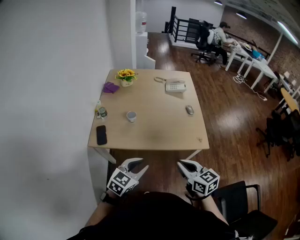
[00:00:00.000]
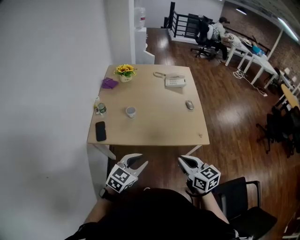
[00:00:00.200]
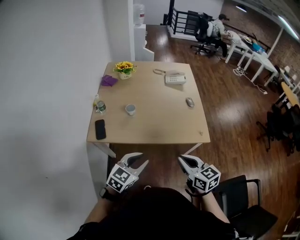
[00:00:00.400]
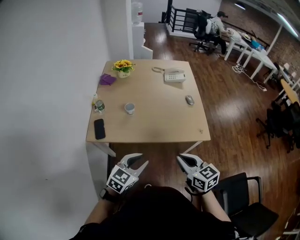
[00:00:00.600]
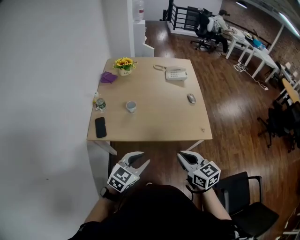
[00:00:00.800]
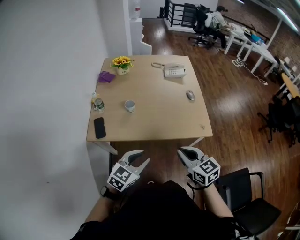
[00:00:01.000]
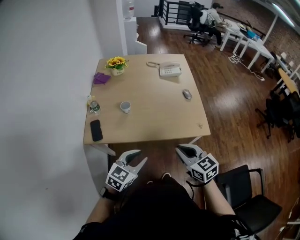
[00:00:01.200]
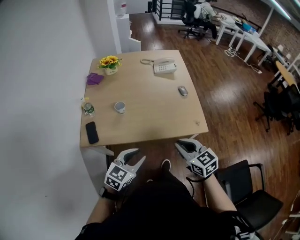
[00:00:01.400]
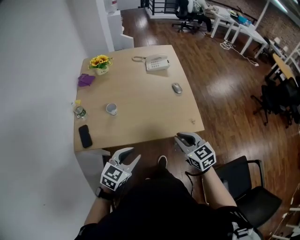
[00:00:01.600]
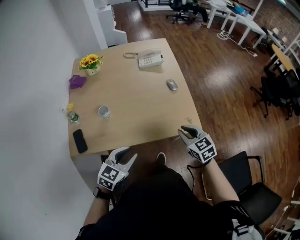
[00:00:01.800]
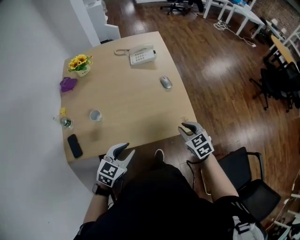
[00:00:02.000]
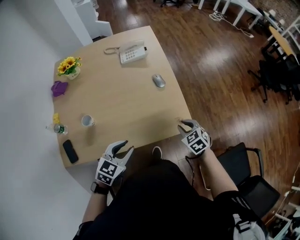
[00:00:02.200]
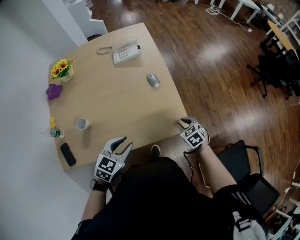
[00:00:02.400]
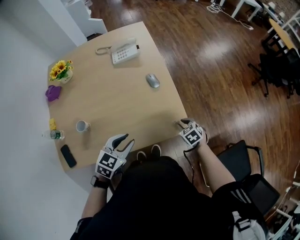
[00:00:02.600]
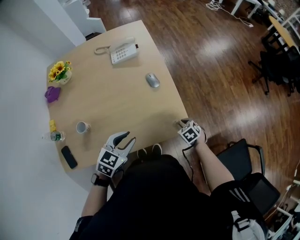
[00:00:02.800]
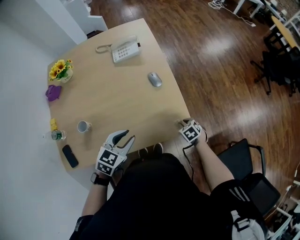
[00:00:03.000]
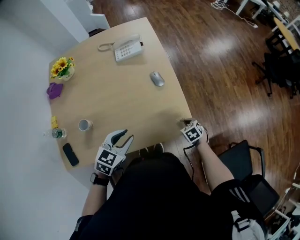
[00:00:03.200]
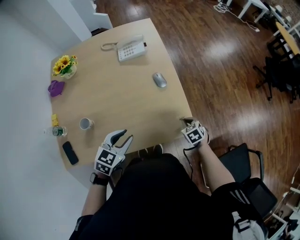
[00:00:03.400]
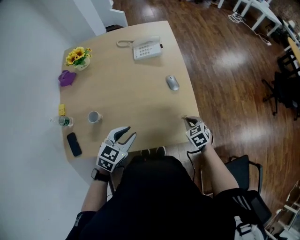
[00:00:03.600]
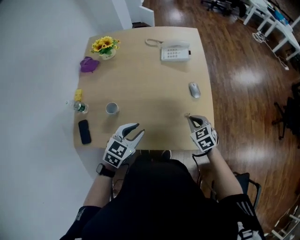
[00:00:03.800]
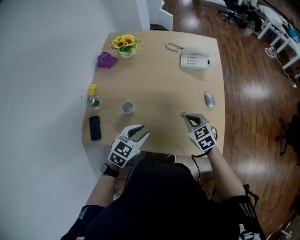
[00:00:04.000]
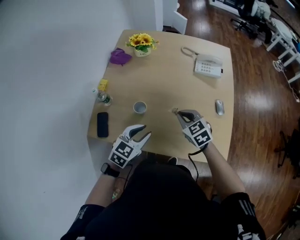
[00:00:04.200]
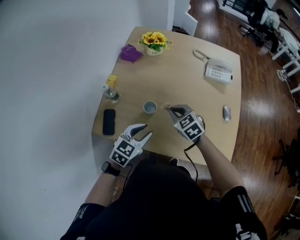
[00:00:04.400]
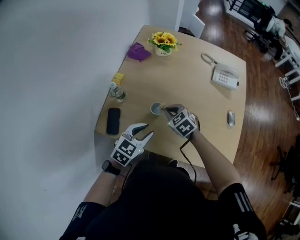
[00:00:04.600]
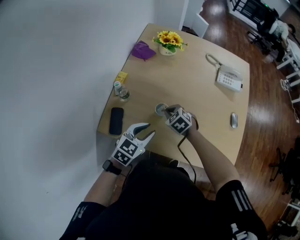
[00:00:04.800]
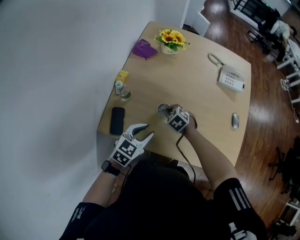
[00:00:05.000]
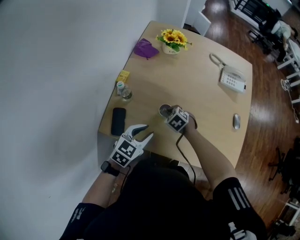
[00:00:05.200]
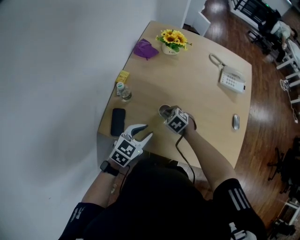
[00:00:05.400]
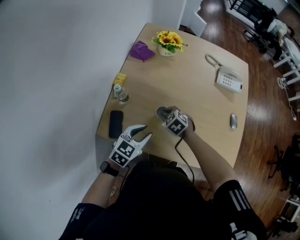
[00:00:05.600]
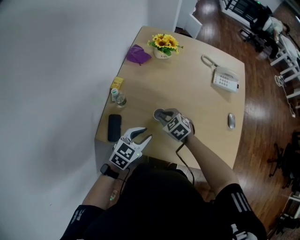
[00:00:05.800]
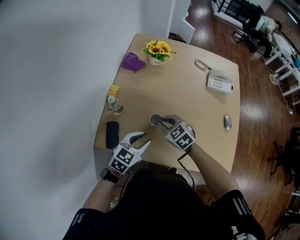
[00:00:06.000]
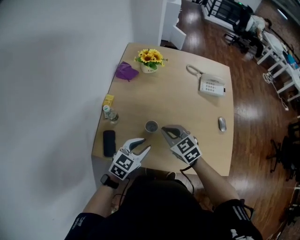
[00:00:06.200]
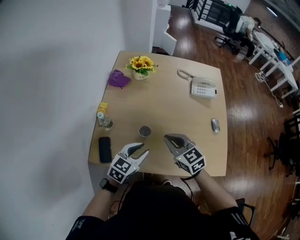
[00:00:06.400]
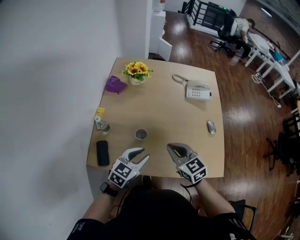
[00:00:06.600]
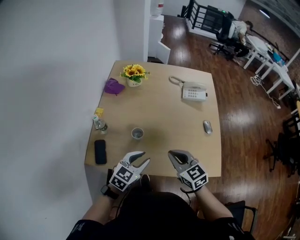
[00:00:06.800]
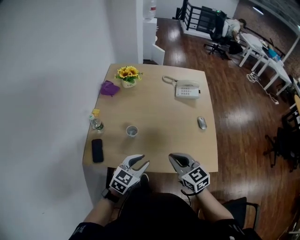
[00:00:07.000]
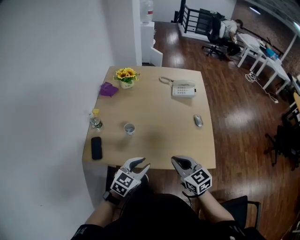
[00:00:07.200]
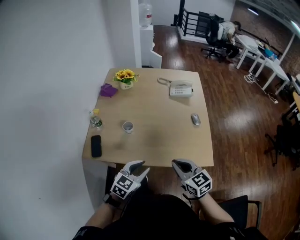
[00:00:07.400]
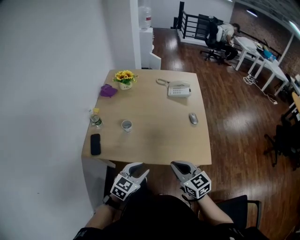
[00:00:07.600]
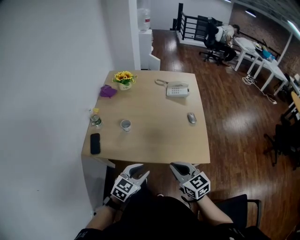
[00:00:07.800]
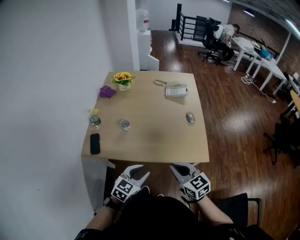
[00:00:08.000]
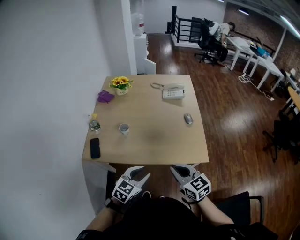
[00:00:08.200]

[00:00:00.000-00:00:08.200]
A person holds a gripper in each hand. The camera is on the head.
00:00:00.000 to 00:00:01.600: The right gripper heads forward, downward and to the right, covering some 15 cm; the left gripper heads forward, covering about 10 cm.
00:00:01.600 to 00:00:03.200: The right gripper is displaced downward, forward and to the right by about 40 cm, and tilts its fingers roughly 40 degrees downward, while the left gripper heads forward, covering some 25 cm.
00:00:03.200 to 00:00:05.000: The left gripper ends up roughly 35 cm from where it was, and turns by approximately 30 degrees. Meanwhile the right gripper ends up about 60 cm from where it was, and rotates around the line of its fingers by some 50 degrees, counterclockwise from behind.
00:00:05.000 to 00:00:06.600: The left gripper is displaced to the right by some 5 cm. The right gripper shifts some 25 cm upward, backward and to the right, and tips its fingers upward by about 40 degrees.
00:00:06.600 to 00:00:08.200: Both grippers travel together backward and to the right, approximately 30 cm.

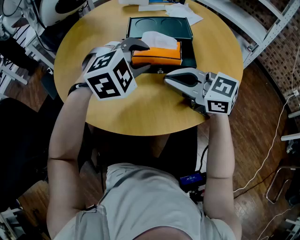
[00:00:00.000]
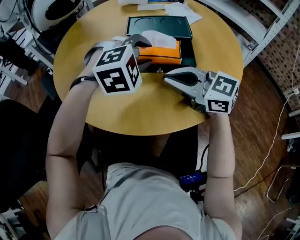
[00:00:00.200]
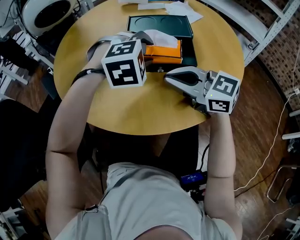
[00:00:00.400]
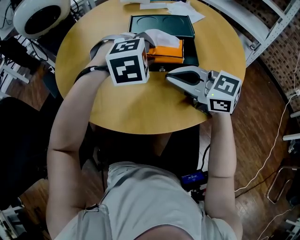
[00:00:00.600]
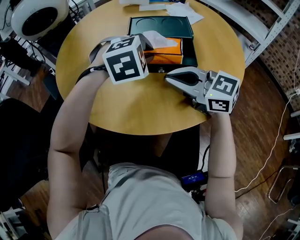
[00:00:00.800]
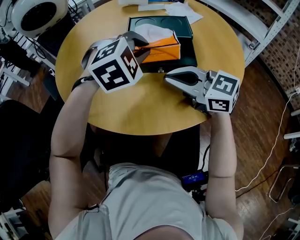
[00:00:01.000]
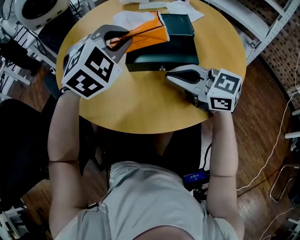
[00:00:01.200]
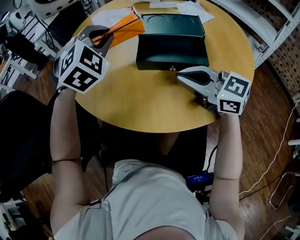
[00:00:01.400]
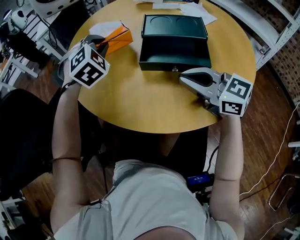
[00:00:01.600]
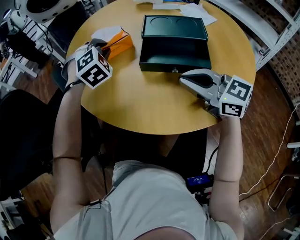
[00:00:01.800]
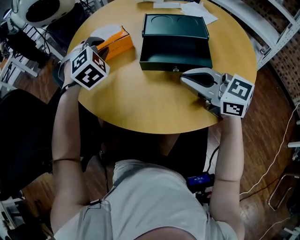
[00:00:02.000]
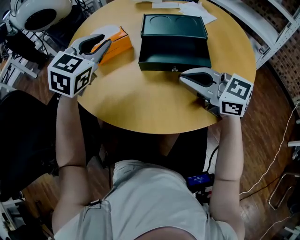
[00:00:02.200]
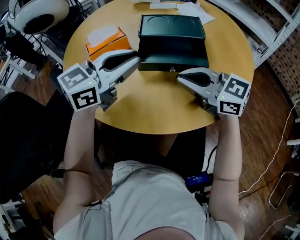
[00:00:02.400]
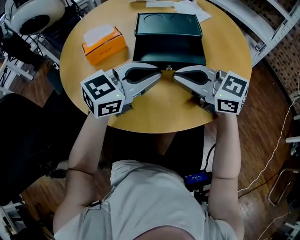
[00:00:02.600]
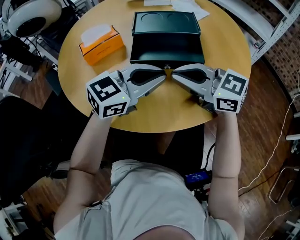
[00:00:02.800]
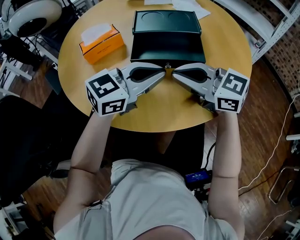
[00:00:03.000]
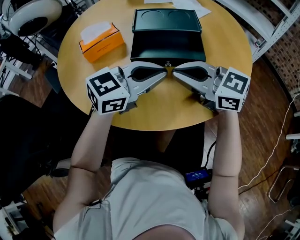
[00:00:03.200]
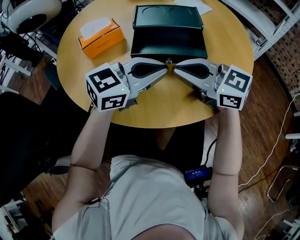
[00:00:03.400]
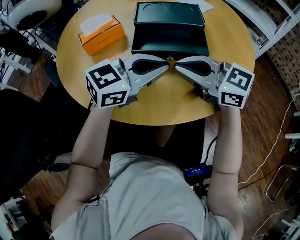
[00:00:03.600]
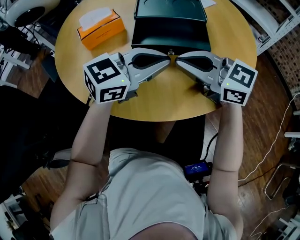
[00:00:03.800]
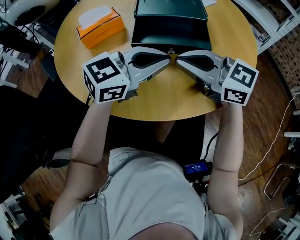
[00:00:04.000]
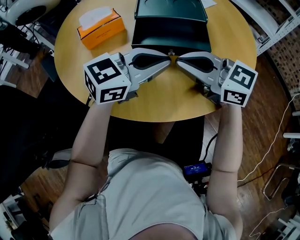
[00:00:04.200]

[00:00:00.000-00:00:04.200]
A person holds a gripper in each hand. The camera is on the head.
00:00:00.000 to 00:00:01.400: The left gripper travels to the left, forward and upward by approximately 15 cm, changes its angle by about 30 degrees, and closes up.
00:00:01.400 to 00:00:02.800: The left gripper swings up and down, roughly 10 cm each way, with 2 reversals, and changes its angle by some 70 degrees.
00:00:02.800 to 00:00:04.200: Both grippers stay put.

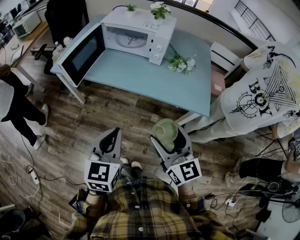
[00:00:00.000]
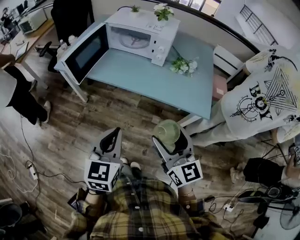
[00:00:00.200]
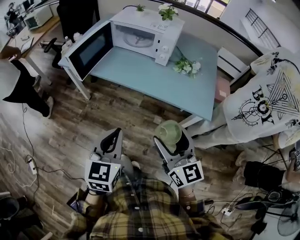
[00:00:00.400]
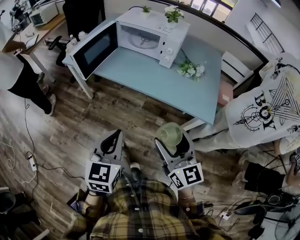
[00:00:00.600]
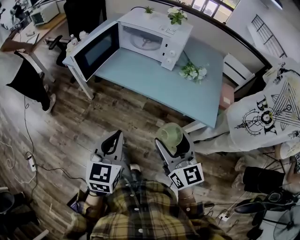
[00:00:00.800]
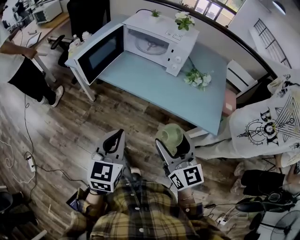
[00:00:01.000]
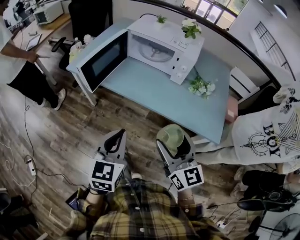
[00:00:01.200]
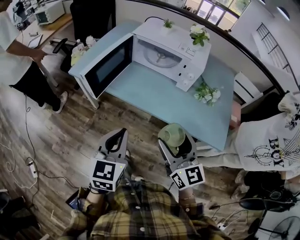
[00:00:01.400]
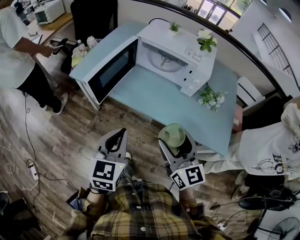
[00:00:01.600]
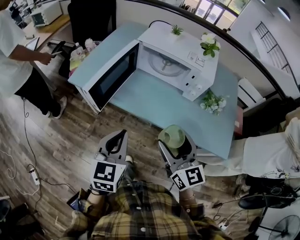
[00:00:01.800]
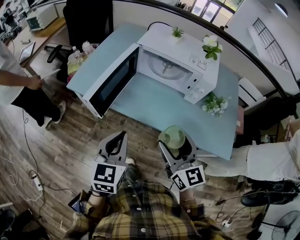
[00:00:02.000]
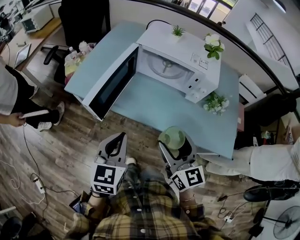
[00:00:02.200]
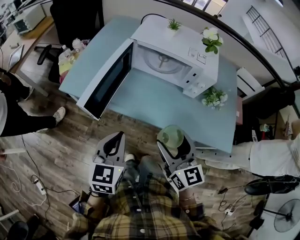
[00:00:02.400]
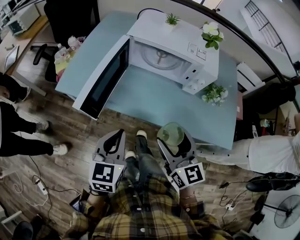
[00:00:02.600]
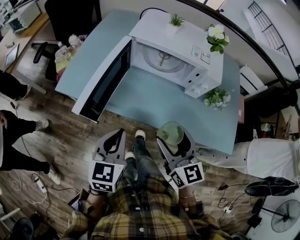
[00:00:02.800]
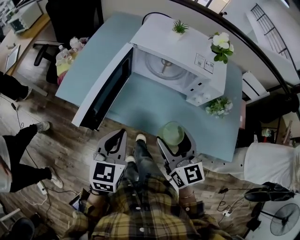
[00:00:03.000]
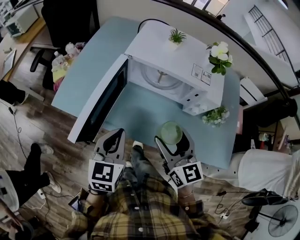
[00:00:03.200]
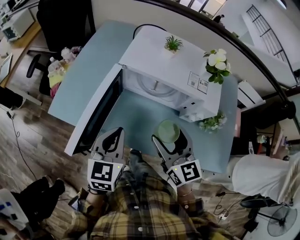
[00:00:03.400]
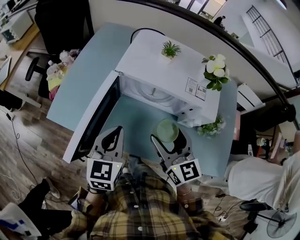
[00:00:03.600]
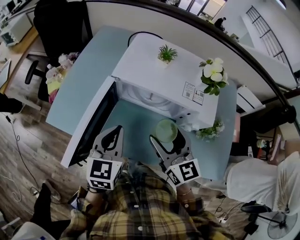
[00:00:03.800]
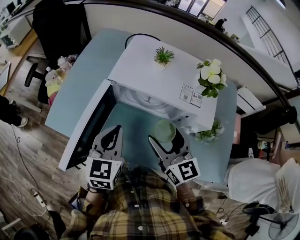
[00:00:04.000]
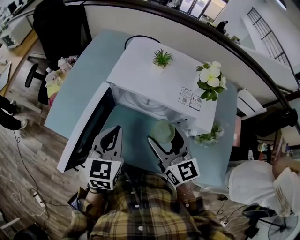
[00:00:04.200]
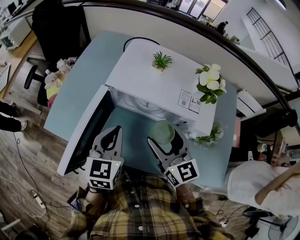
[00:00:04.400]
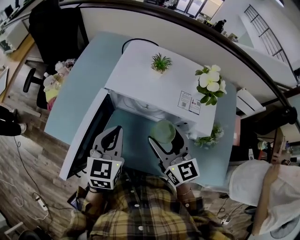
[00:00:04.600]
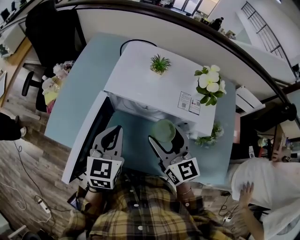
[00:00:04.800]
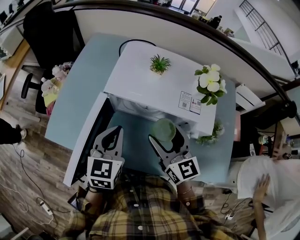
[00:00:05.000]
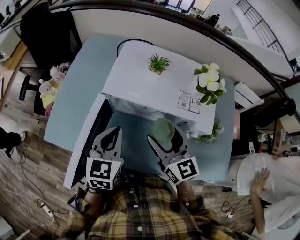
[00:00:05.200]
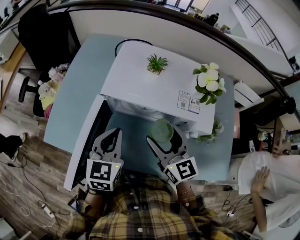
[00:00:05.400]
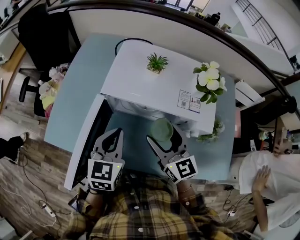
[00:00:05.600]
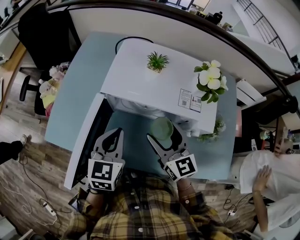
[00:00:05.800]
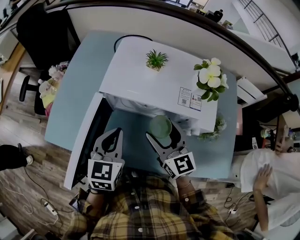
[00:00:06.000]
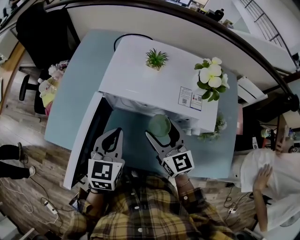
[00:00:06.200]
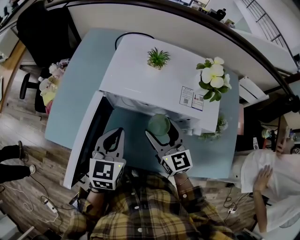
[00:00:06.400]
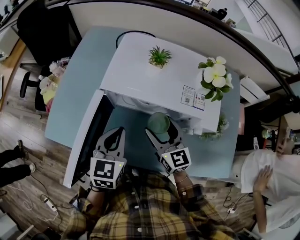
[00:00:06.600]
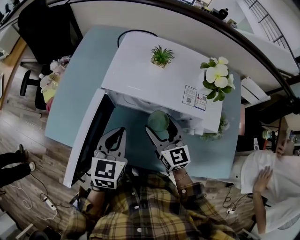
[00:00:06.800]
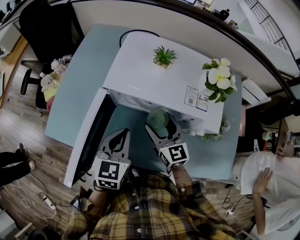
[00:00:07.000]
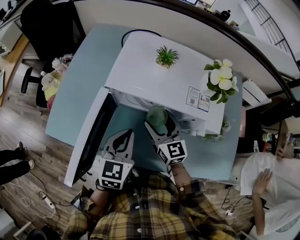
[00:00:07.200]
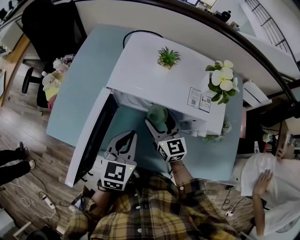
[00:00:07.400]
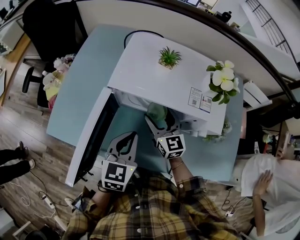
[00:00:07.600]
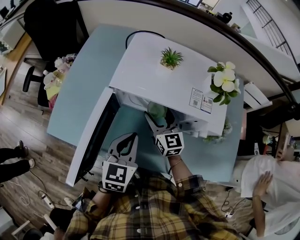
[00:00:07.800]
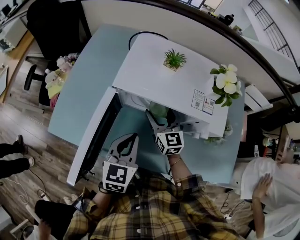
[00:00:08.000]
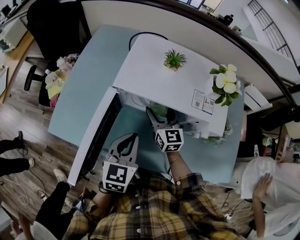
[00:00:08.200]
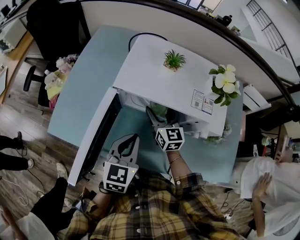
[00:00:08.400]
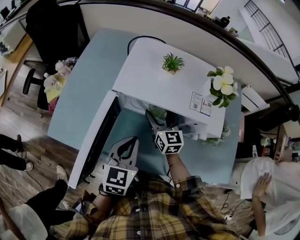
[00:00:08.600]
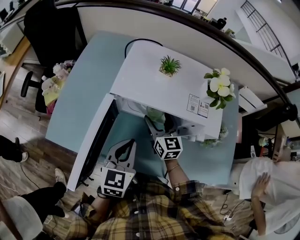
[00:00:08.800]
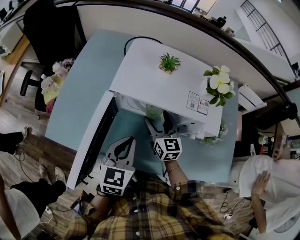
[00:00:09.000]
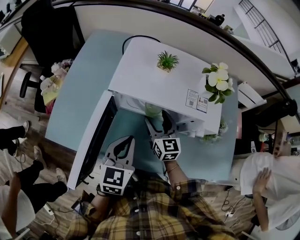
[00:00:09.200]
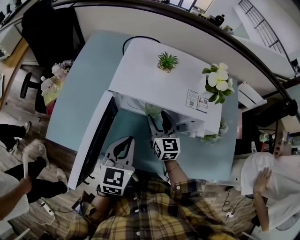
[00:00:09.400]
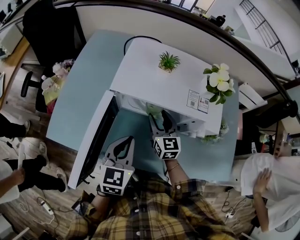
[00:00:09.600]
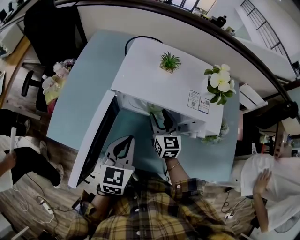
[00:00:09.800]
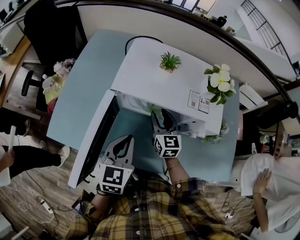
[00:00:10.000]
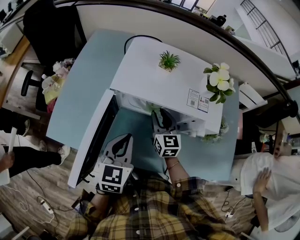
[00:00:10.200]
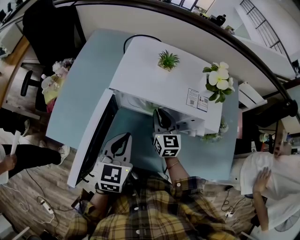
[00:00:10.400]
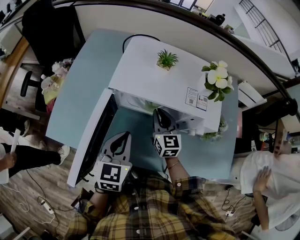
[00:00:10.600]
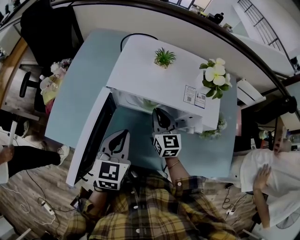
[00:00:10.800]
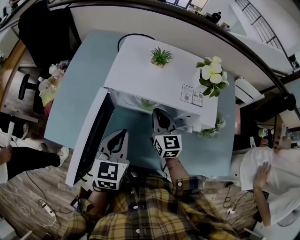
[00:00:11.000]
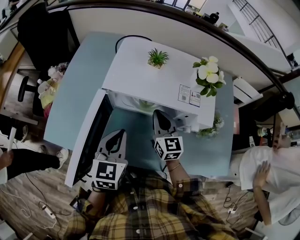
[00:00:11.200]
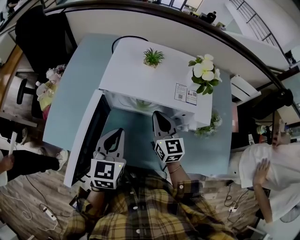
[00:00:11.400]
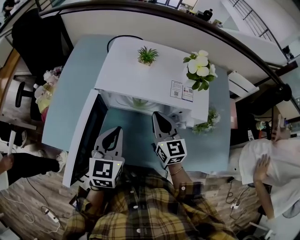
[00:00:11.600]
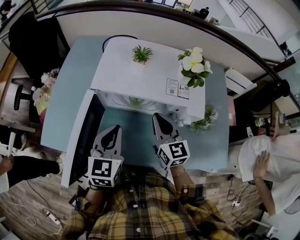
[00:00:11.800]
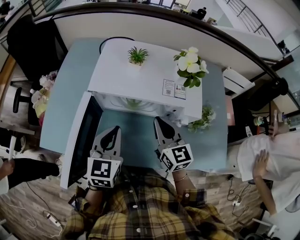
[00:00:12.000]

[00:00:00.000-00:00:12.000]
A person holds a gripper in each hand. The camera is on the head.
00:00:00.000 to 00:00:01.600: Both grippers move forward and to the left, about 20 cm.
00:00:01.600 to 00:00:03.000: The grippers both shift forward by roughly 15 cm.
00:00:03.000 to 00:00:04.400: Both grippers move forward, some 20 cm.
00:00:04.400 to 00:00:06.000: The grippers move only a little.
00:00:06.000 to 00:00:07.600: The right gripper travels downward and forward by about 10 cm.
00:00:07.600 to 00:00:09.000: There are only small adjustments of the grippers.
00:00:09.000 to 00:00:10.400: The right gripper closes up.
00:00:10.400 to 00:00:12.000: The right gripper shifts approximately 15 cm upward, backward and to the right.
